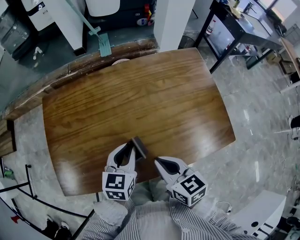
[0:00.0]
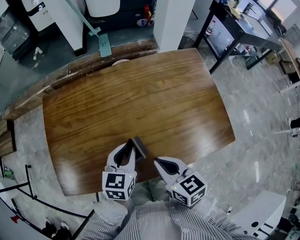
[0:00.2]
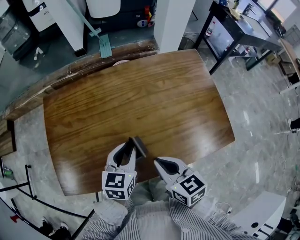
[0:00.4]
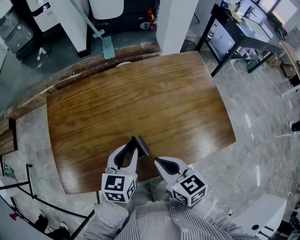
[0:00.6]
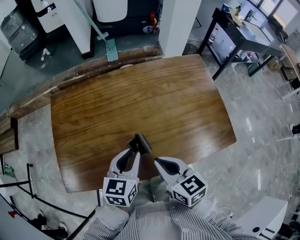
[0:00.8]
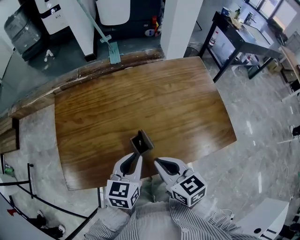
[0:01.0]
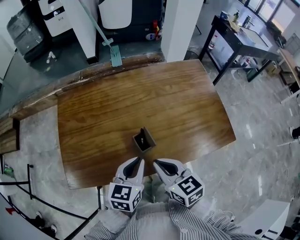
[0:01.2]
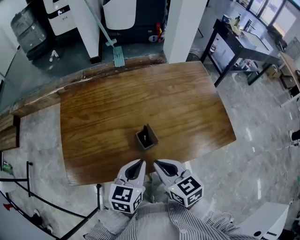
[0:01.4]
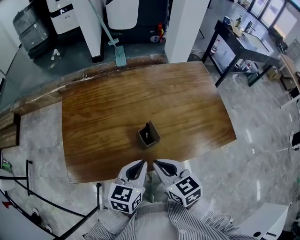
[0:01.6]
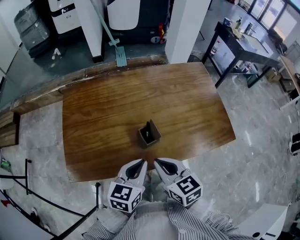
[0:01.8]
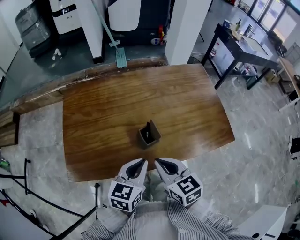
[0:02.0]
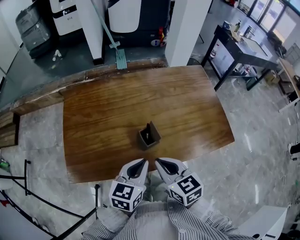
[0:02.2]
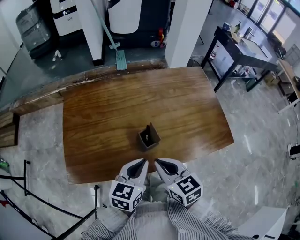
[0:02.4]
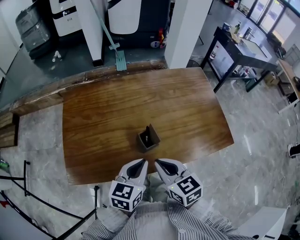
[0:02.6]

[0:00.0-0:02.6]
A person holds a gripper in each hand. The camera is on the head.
0.0 to 1.2 s: The right gripper changes place by roughly 5 cm. The left gripper heads backward, covering about 10 cm.
1.2 to 2.6 s: The grippers stay close to where they were, moving slightly.

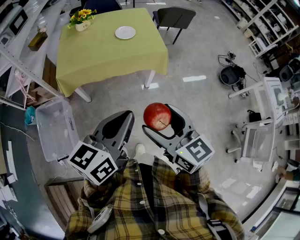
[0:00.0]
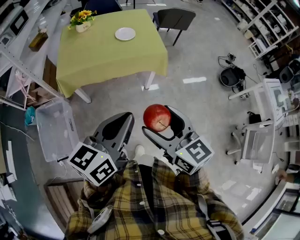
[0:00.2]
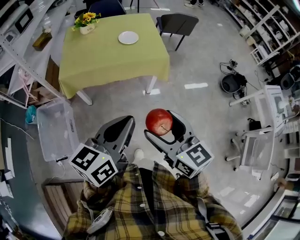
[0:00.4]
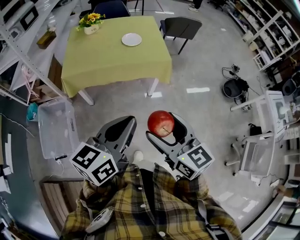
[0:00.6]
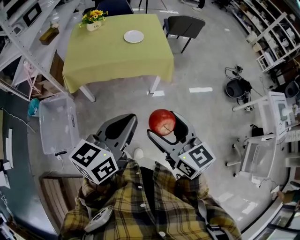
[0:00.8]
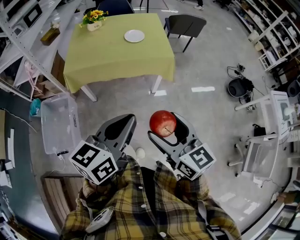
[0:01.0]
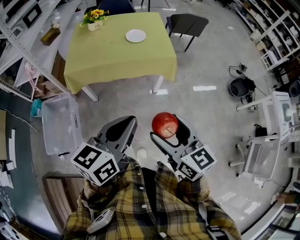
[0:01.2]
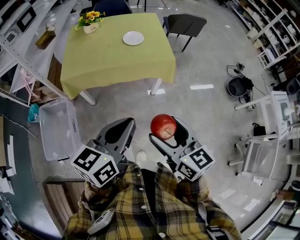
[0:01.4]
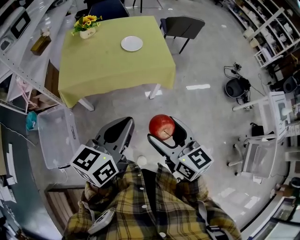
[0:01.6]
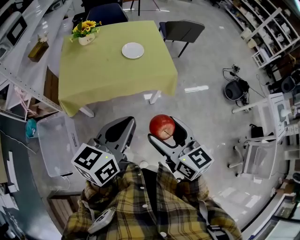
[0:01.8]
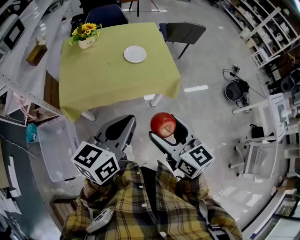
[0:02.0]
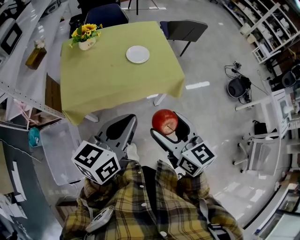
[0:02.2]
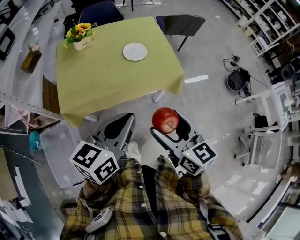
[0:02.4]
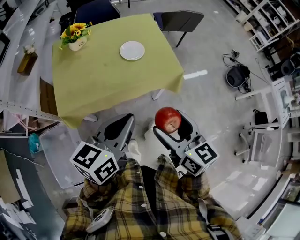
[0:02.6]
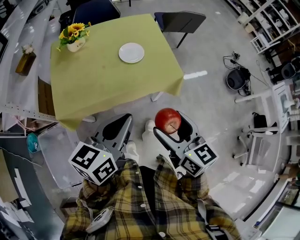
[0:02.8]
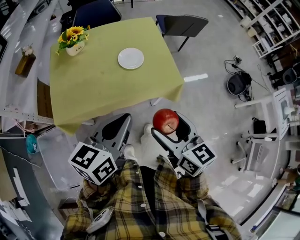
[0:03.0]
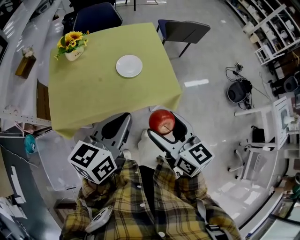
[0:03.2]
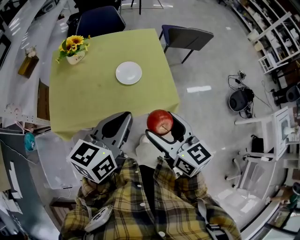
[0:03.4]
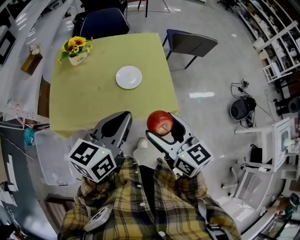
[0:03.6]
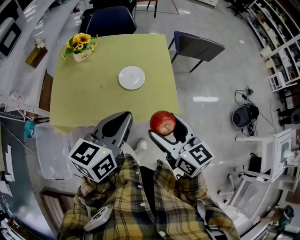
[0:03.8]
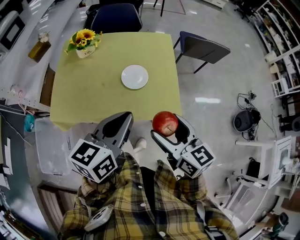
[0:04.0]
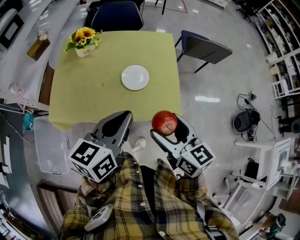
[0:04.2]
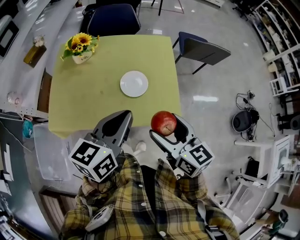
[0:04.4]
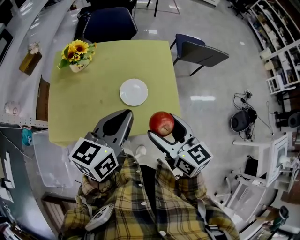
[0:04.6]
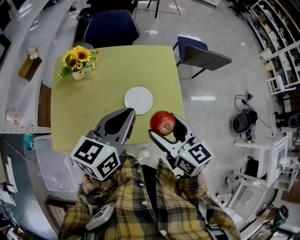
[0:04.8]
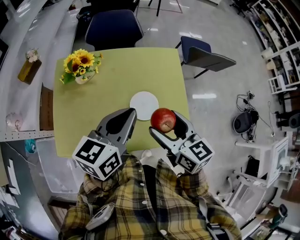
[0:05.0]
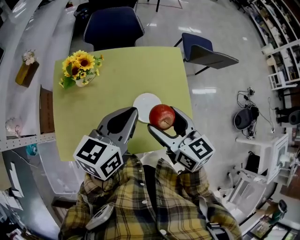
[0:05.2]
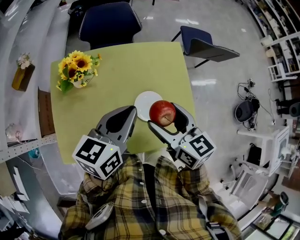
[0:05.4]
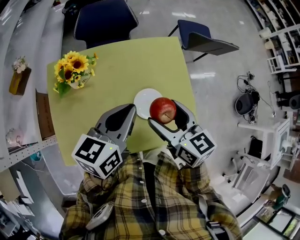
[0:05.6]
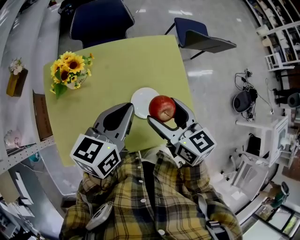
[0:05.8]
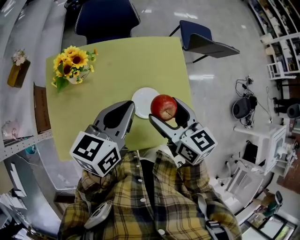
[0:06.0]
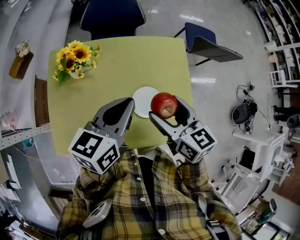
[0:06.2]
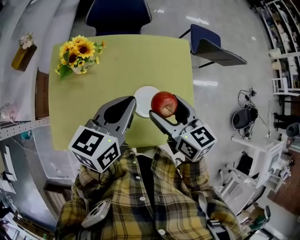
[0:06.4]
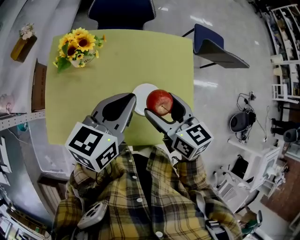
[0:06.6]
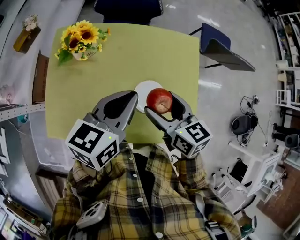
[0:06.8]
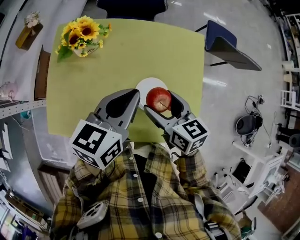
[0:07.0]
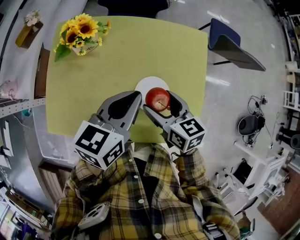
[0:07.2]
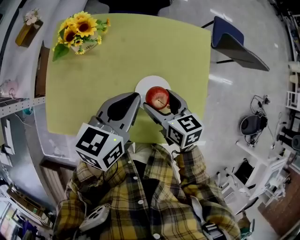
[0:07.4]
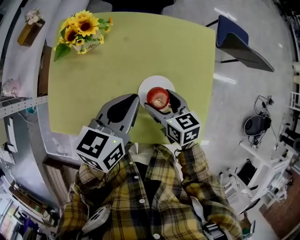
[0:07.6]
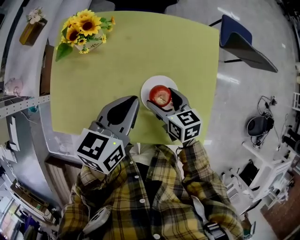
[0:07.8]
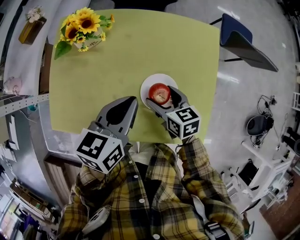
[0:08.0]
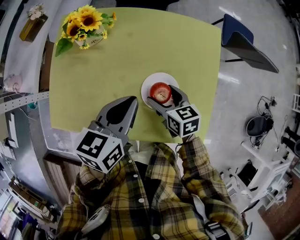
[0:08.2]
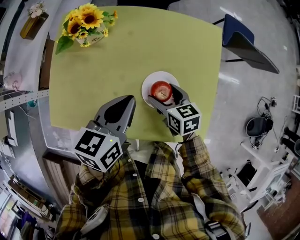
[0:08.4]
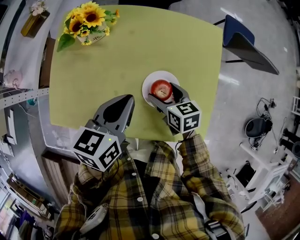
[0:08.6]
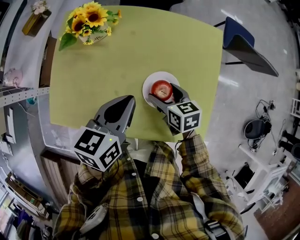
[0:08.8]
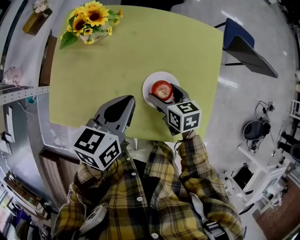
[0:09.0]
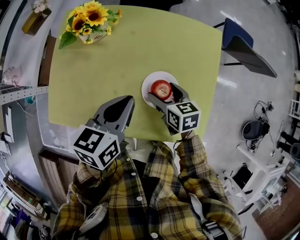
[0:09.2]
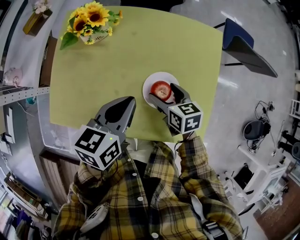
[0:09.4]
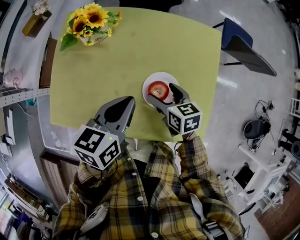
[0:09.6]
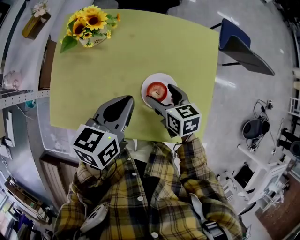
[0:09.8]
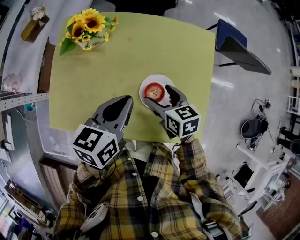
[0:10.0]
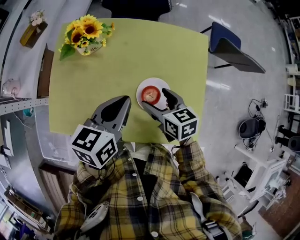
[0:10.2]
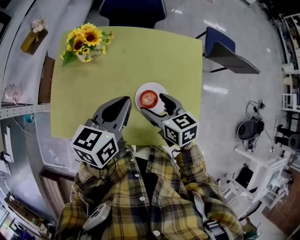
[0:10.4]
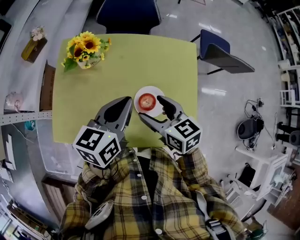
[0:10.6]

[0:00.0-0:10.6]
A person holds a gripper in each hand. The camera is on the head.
0.0 to 1.6 s: The grippers both shift forward by some 10 cm.
1.6 to 3.0 s: Both grippers travel together forward, roughly 20 cm.
3.0 to 4.6 s: Both grippers move forward, some 20 cm.
4.6 to 6.0 s: Both grippers travel together forward and to the left, roughly 15 cm.
6.0 to 7.6 s: The right gripper shifts approximately 20 cm downward, and turns by some 20 degrees. Meanwhile the left gripper travels downward by about 10 cm.
7.6 to 9.0 s: There are only small adjustments of the grippers.
9.0 to 10.6 s: The right gripper is displaced upward by some 15 cm, while the left gripper goes approximately 5 cm upward.

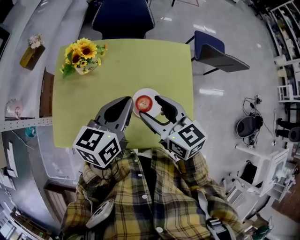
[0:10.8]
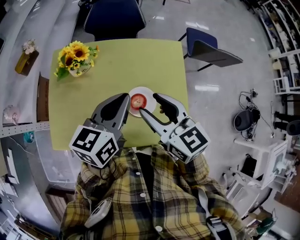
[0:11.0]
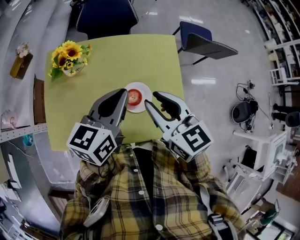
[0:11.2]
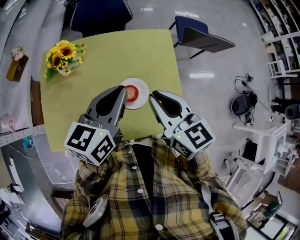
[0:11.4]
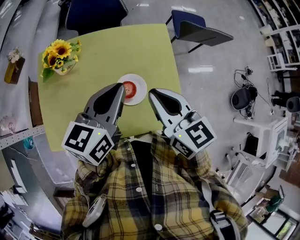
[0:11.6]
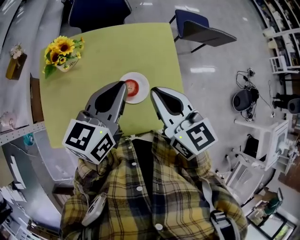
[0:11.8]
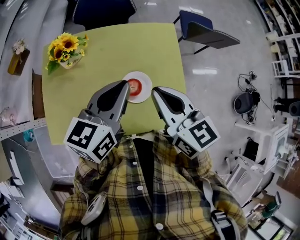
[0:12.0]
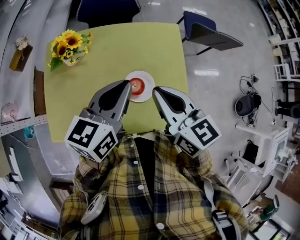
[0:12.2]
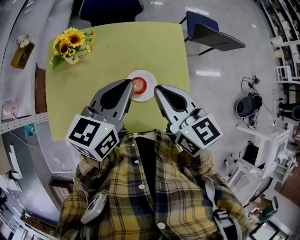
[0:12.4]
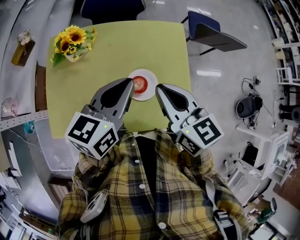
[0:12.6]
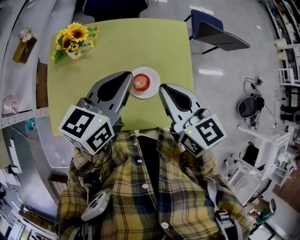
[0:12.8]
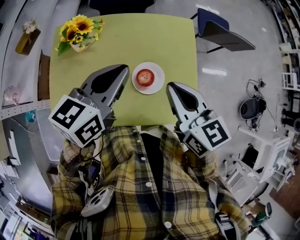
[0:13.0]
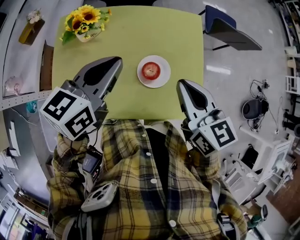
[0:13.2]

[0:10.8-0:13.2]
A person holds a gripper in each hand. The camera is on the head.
10.8 to 12.0 s: The left gripper moves about 5 cm, while the right gripper goes roughly 10 cm upward and to the right, and closes its fingers.
12.0 to 13.2 s: The left gripper is displaced to the left by about 5 cm.

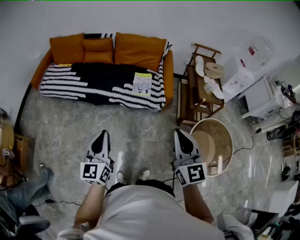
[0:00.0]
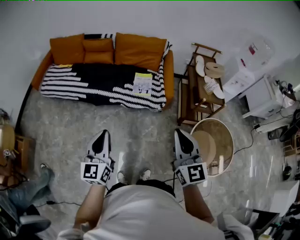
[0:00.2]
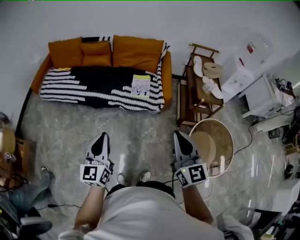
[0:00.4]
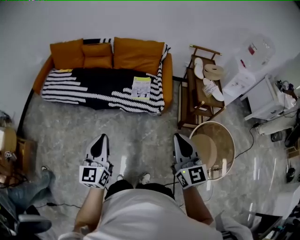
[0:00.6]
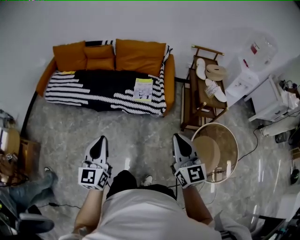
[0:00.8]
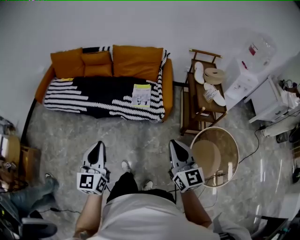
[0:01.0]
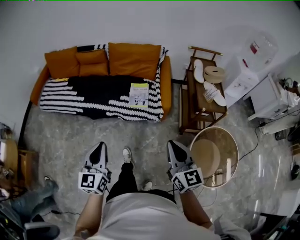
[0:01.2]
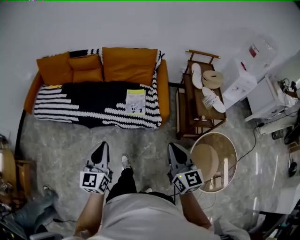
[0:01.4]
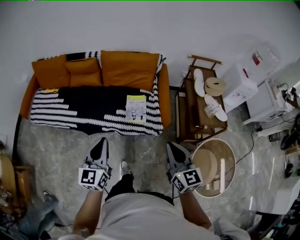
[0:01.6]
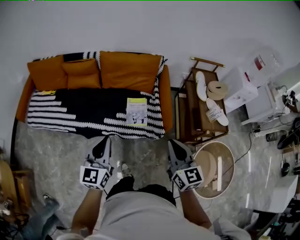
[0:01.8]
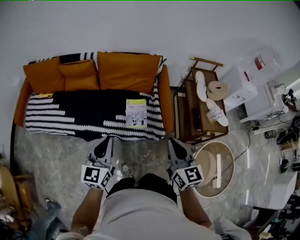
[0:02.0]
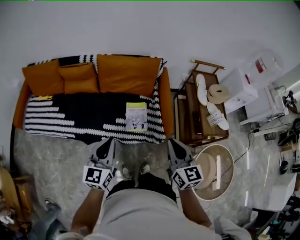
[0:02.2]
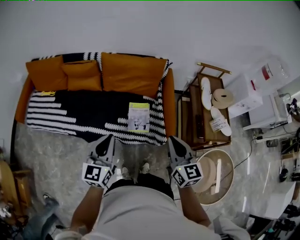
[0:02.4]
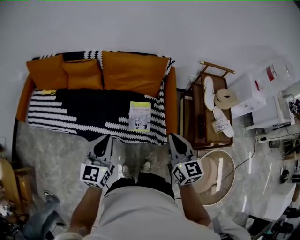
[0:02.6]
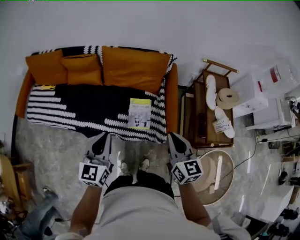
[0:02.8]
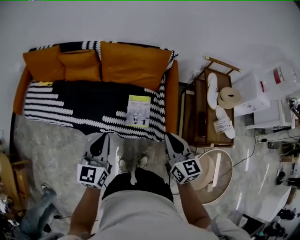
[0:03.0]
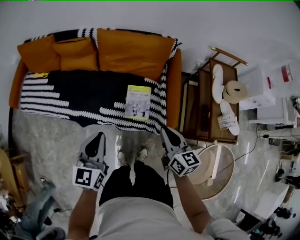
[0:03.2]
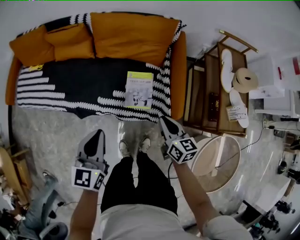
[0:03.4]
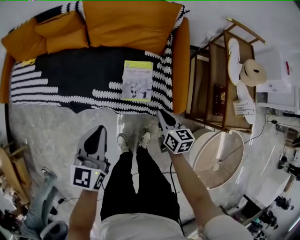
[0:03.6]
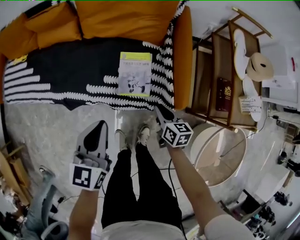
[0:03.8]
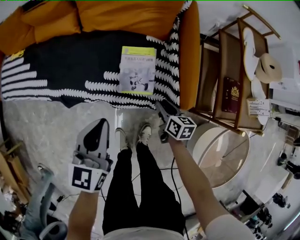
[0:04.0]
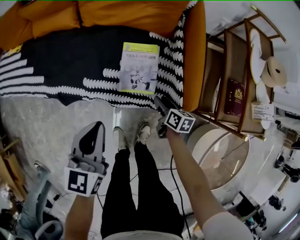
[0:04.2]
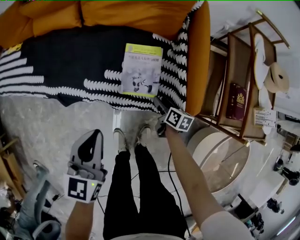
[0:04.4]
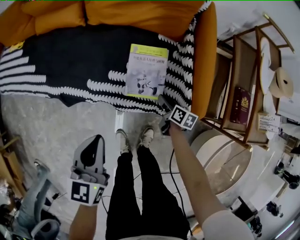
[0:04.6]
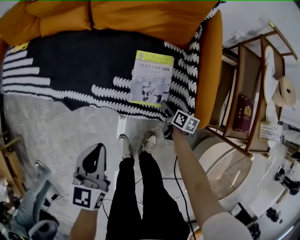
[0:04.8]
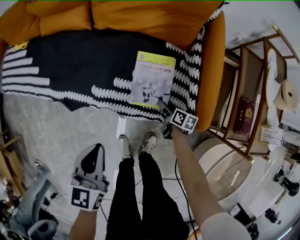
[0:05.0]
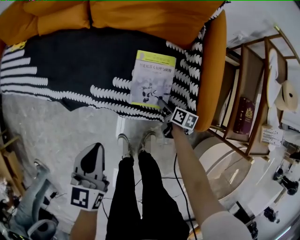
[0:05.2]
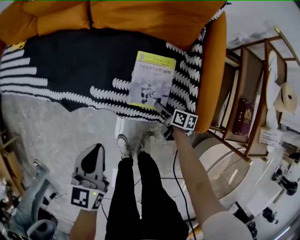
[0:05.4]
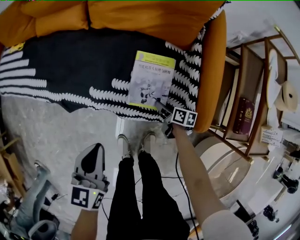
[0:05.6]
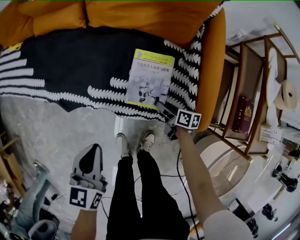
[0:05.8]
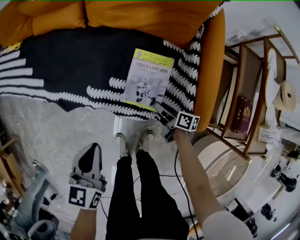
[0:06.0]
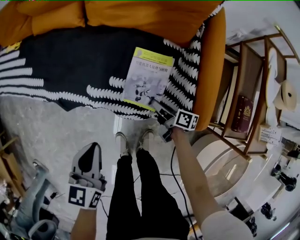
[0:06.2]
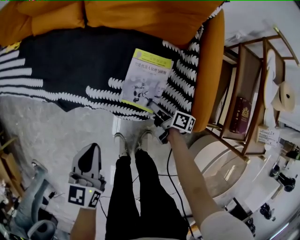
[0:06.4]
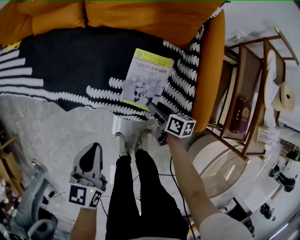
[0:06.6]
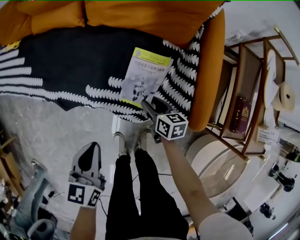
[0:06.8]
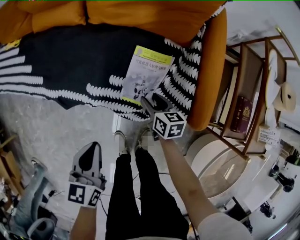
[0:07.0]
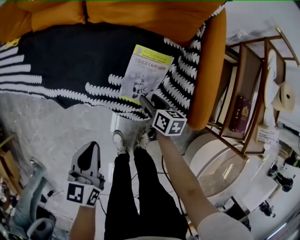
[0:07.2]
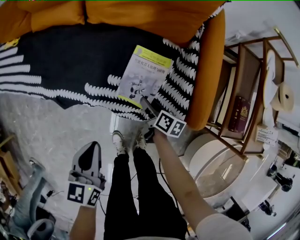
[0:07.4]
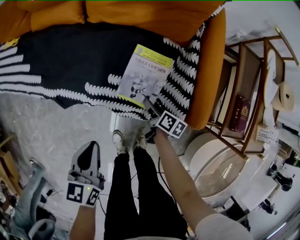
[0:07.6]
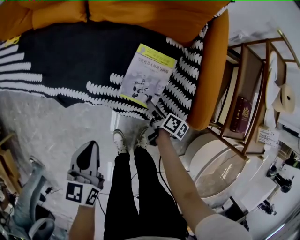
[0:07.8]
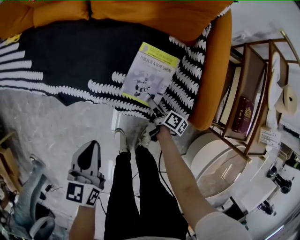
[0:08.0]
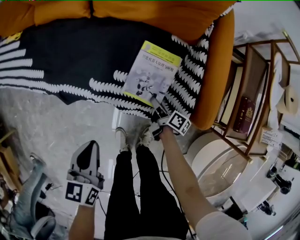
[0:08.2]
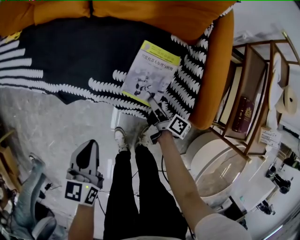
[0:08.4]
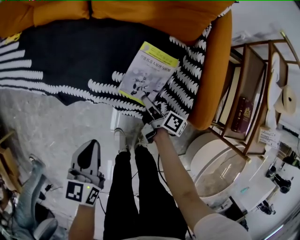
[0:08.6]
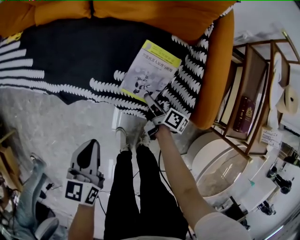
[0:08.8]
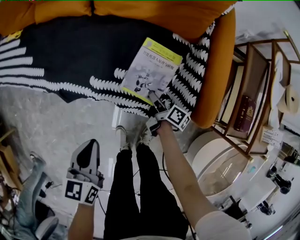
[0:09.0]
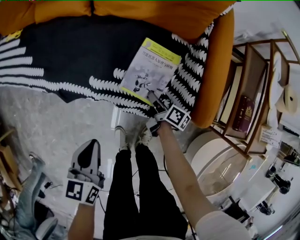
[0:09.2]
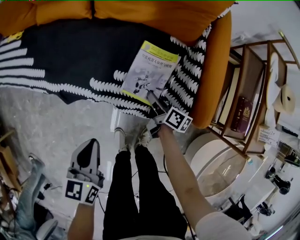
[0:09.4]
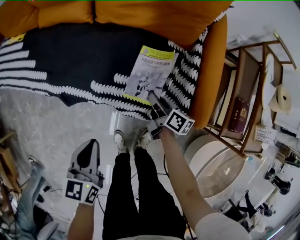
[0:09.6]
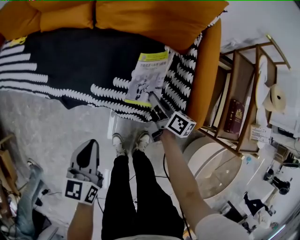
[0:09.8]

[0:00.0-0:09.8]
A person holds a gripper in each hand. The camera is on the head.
0.0 to 1.4 s: The right gripper is displaced forward, downward and to the right by roughly 20 cm. The left gripper is displaced forward and to the right by about 20 cm.
1.4 to 2.8 s: Both grippers move forward, some 30 cm.
2.8 to 4.2 s: The right gripper travels downward by approximately 50 cm, swivels about 50 degrees, and opens up, while the left gripper shifts approximately 25 cm downward.
4.2 to 5.6 s: The left gripper heads downward, covering roughly 5 cm; the right gripper goes some 10 cm downward and forward.
5.6 to 7.0 s: The right gripper travels upward and to the left by roughly 10 cm, and rotates roughly 30 degrees.
7.0 to 8.4 s: The right gripper rotates around the line of its fingers by about 50 degrees, clockwise from behind, and closes.
8.4 to 9.8 s: The right gripper shifts about 10 cm upward and forward.
